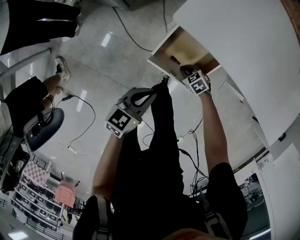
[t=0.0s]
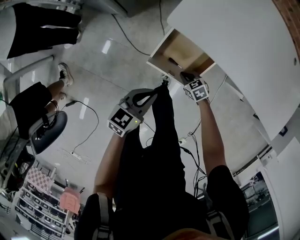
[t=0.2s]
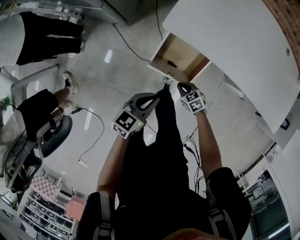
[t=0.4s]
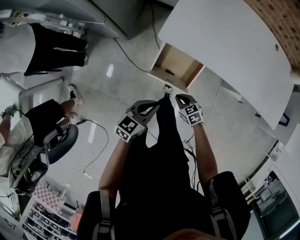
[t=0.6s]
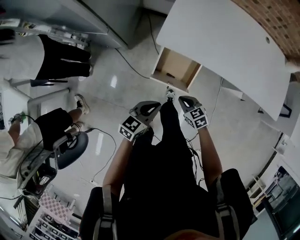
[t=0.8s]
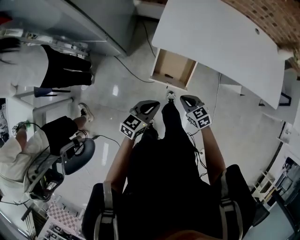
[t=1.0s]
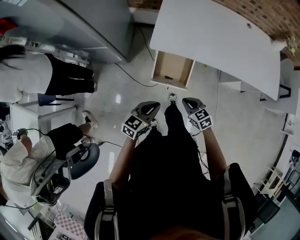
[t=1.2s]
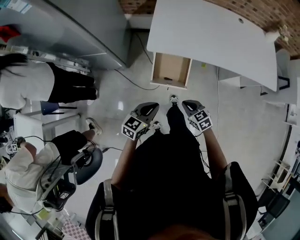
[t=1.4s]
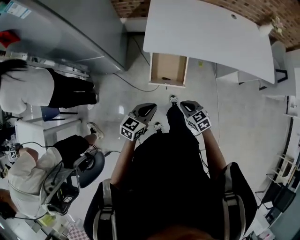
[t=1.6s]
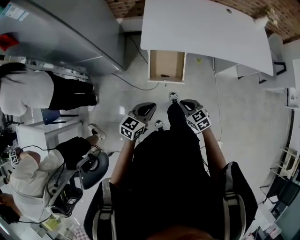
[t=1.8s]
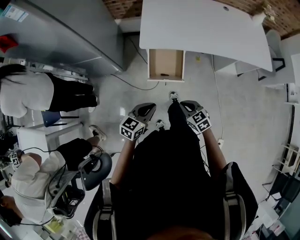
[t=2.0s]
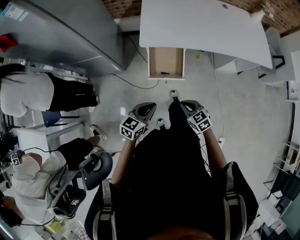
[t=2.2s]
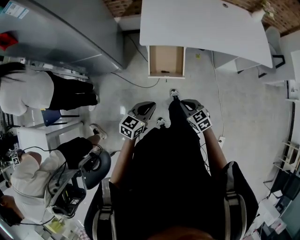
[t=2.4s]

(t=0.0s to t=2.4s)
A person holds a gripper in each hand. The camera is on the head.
t=0.0s - t=1.2s: The right gripper moves upward, roughly 35 cm, and rotates about 40 degrees. The left gripper heads upward, covering approximately 20 cm, and rotates roughly 20 degrees.
t=1.2s - t=2.4s: The two grippers go approximately 10 cm backward.

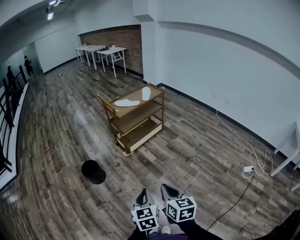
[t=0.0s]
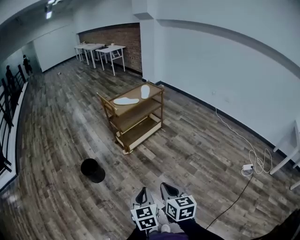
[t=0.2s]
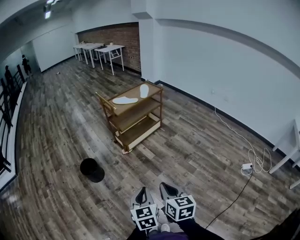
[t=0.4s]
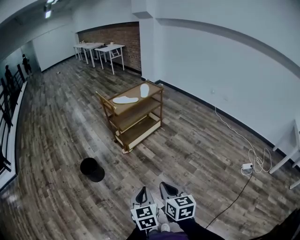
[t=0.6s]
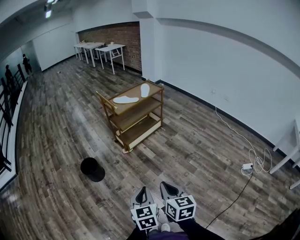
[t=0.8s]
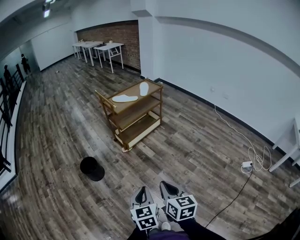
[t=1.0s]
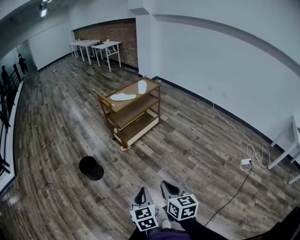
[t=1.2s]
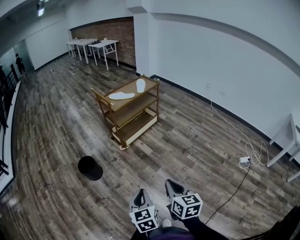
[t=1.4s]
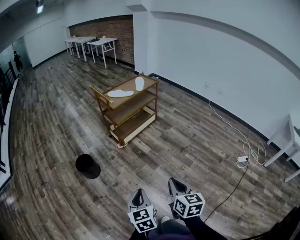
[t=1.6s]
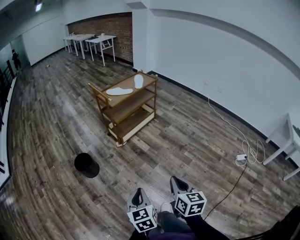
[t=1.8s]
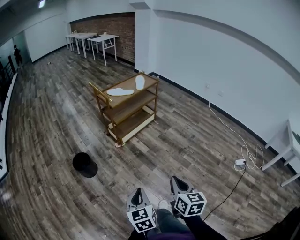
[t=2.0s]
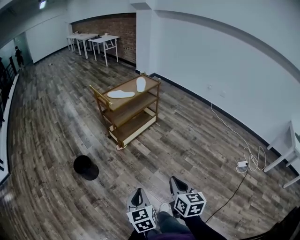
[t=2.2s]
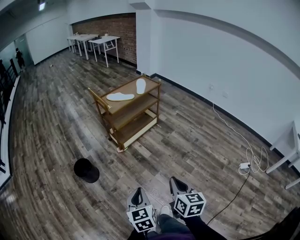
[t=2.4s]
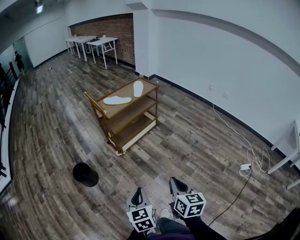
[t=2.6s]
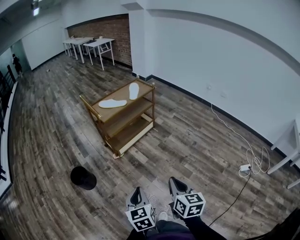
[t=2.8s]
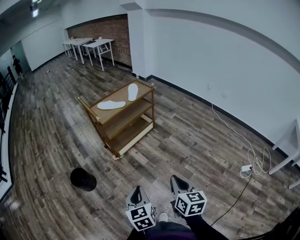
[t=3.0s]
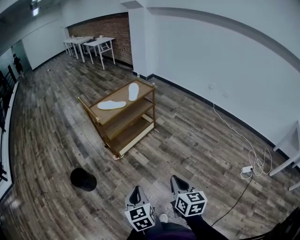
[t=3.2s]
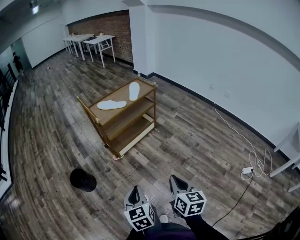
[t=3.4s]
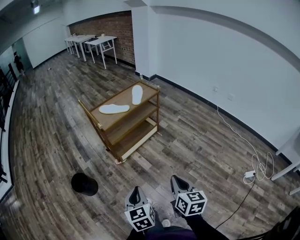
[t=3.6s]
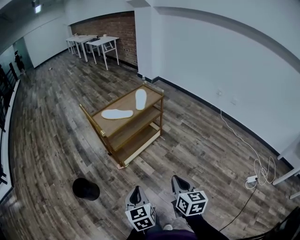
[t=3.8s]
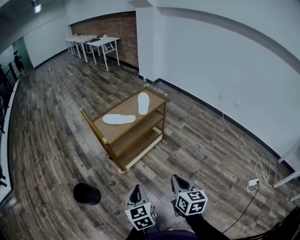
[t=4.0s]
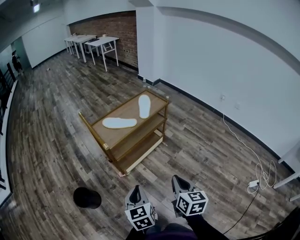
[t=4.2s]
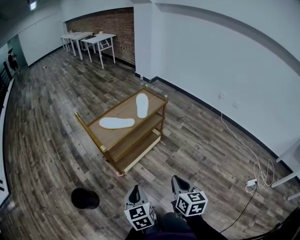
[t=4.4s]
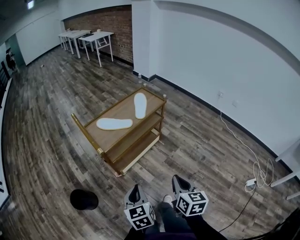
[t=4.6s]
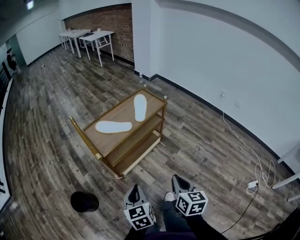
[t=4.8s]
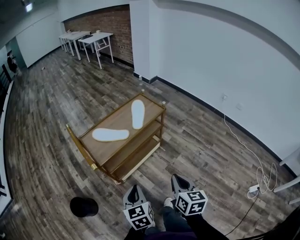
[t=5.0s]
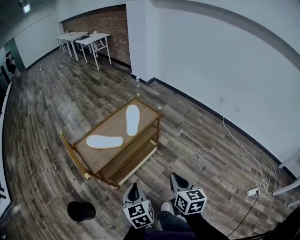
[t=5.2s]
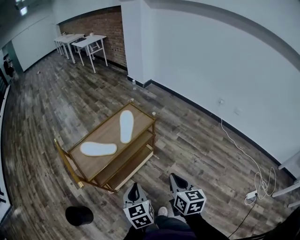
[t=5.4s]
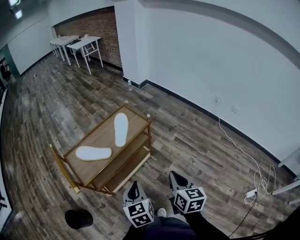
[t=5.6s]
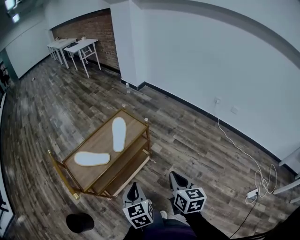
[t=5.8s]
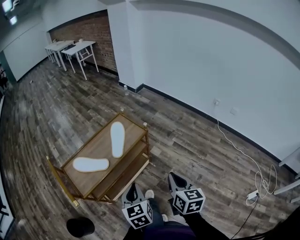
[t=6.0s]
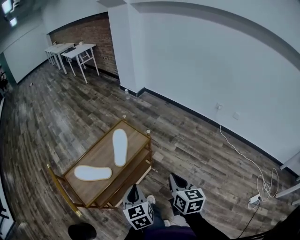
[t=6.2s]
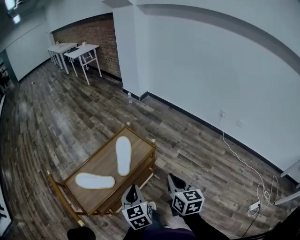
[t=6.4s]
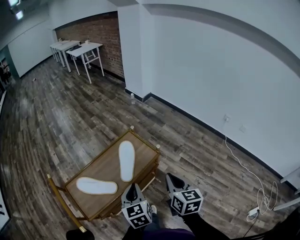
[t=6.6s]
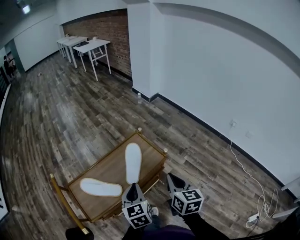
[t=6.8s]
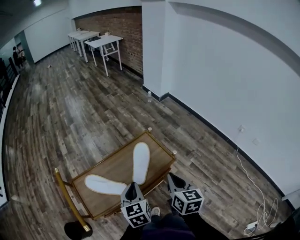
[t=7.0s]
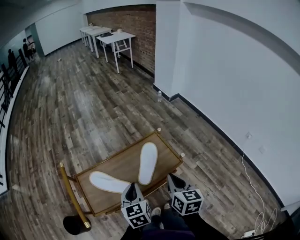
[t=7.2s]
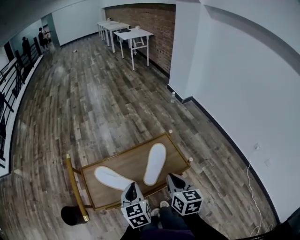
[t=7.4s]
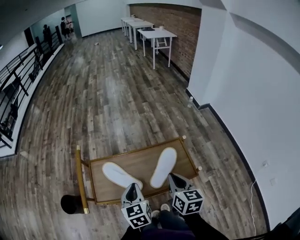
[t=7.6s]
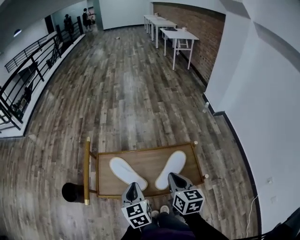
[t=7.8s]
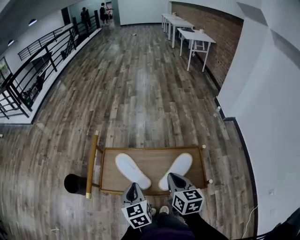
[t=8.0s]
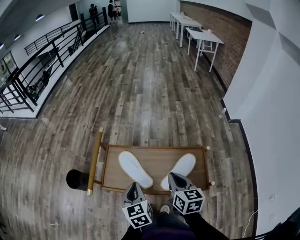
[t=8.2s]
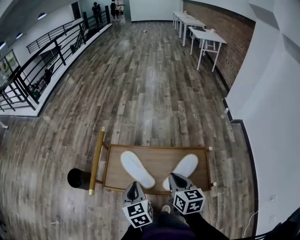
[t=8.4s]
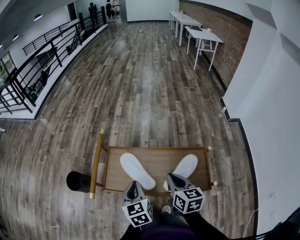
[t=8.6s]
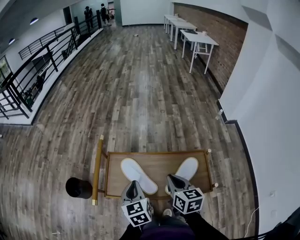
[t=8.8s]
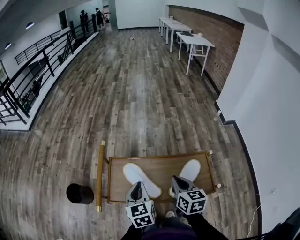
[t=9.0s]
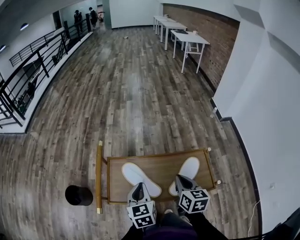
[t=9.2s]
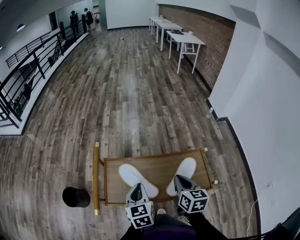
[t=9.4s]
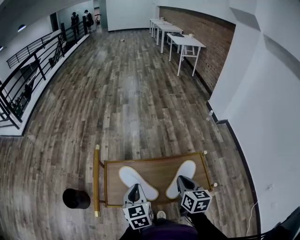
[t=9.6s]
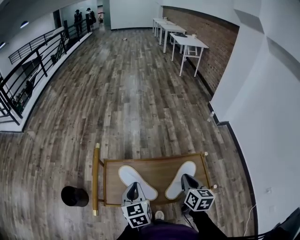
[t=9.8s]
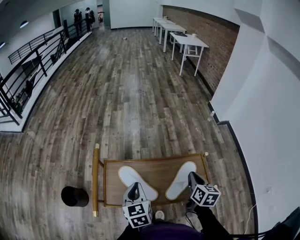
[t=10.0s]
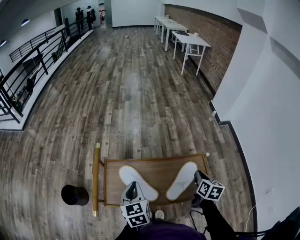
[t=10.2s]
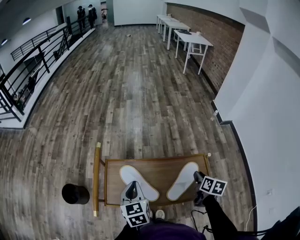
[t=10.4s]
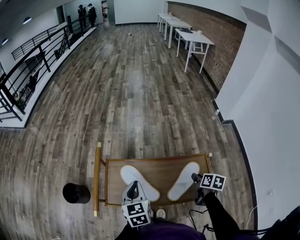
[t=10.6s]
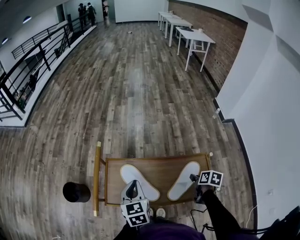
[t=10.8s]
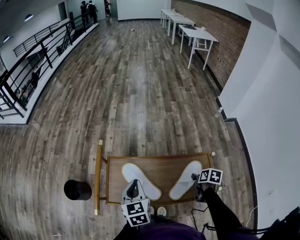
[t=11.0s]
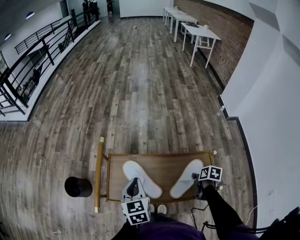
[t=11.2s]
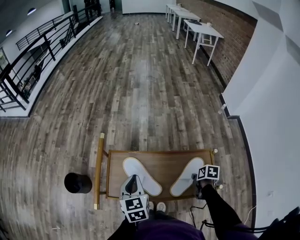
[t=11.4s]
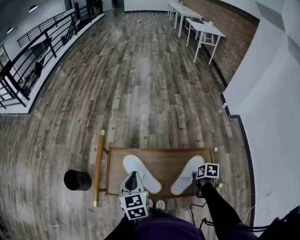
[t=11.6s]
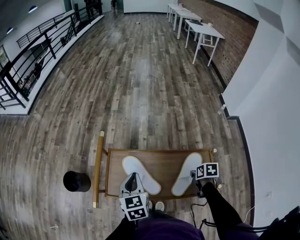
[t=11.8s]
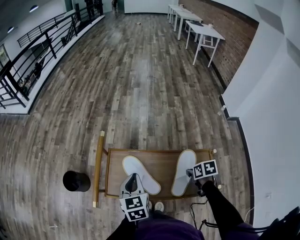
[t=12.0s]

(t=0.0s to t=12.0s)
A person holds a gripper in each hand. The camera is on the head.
t=0.0s - t=1.6s: The grippers make only small movements.
t=1.6s - t=3.0s: The two grippers go some 20 cm forward and to the right.
t=3.0s - t=4.4s: The grippers both shift forward by approximately 30 cm.
t=4.4s - t=6.0s: The grippers both shift forward and to the right by roughly 35 cm.
t=6.0s - t=7.6s: The left gripper changes place by about 25 cm, and changes its angle by approximately 30 degrees. Meanwhile the right gripper changes place by roughly 35 cm, and turns by some 30 degrees.
t=7.6s - t=9.0s: The left gripper travels to the left and forward by some 10 cm. The right gripper heads forward and to the left, covering roughly 10 cm.
t=9.0s - t=10.4s: The right gripper travels to the right and downward by about 20 cm, and swivels approximately 30 degrees.
t=10.4s - t=12.0s: The right gripper is displaced to the left and downward by roughly 10 cm, and rotates roughly 40 degrees.

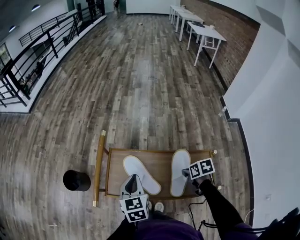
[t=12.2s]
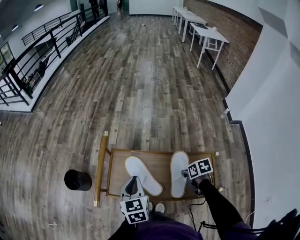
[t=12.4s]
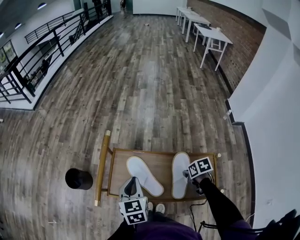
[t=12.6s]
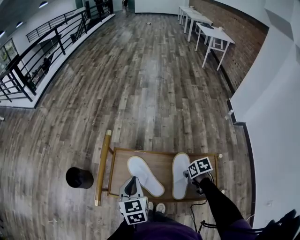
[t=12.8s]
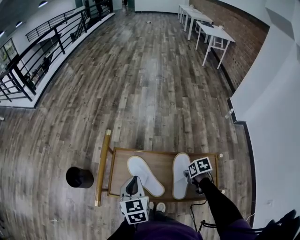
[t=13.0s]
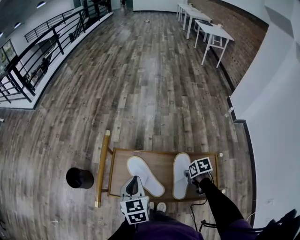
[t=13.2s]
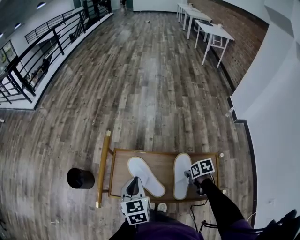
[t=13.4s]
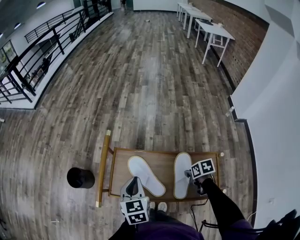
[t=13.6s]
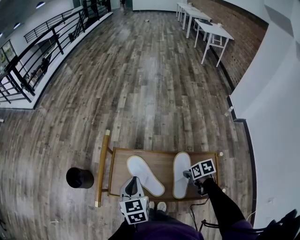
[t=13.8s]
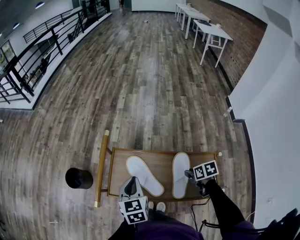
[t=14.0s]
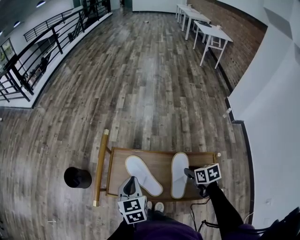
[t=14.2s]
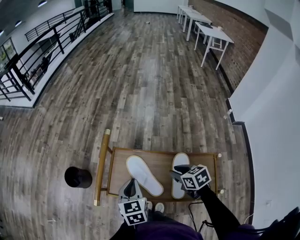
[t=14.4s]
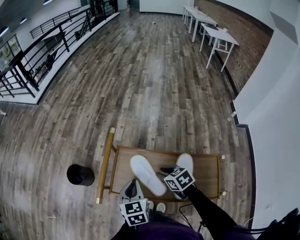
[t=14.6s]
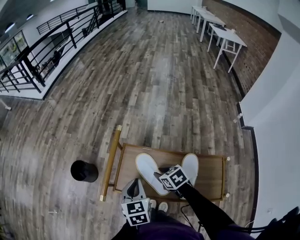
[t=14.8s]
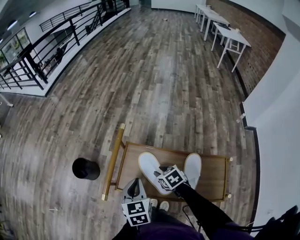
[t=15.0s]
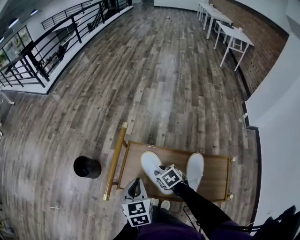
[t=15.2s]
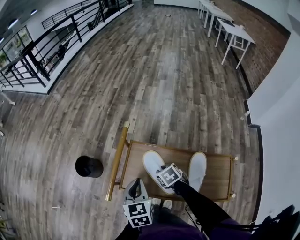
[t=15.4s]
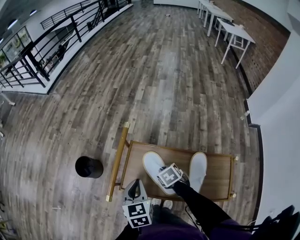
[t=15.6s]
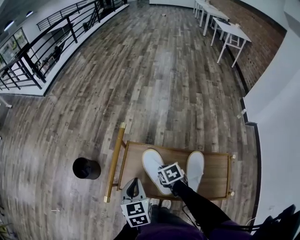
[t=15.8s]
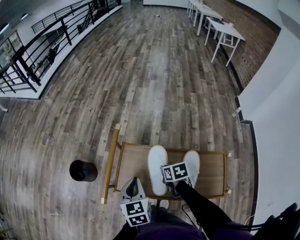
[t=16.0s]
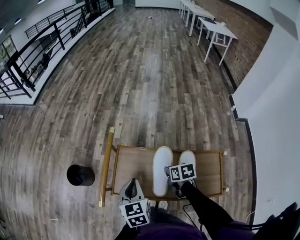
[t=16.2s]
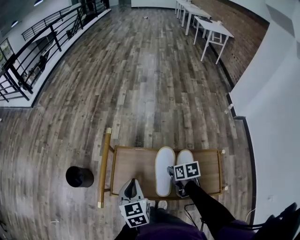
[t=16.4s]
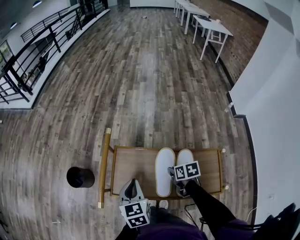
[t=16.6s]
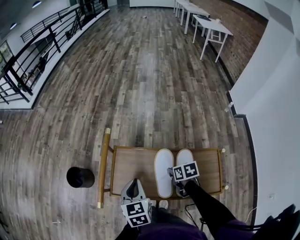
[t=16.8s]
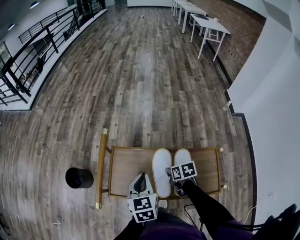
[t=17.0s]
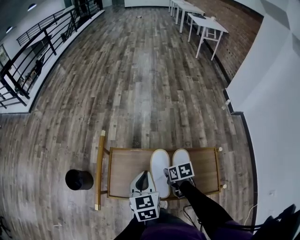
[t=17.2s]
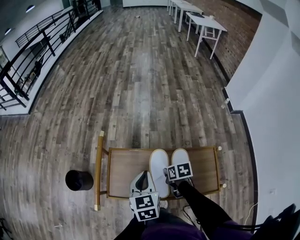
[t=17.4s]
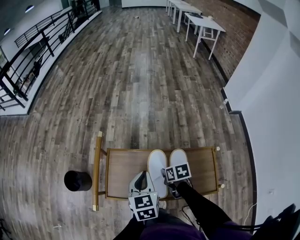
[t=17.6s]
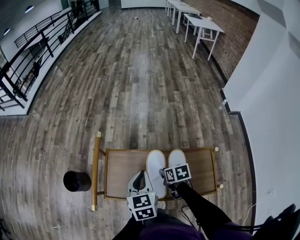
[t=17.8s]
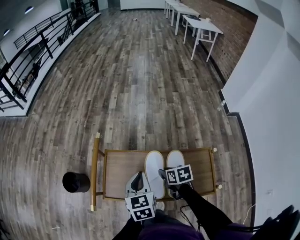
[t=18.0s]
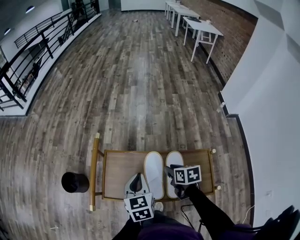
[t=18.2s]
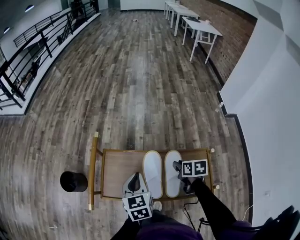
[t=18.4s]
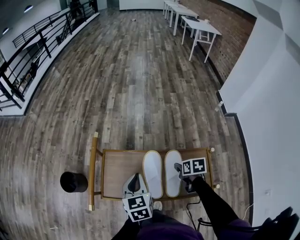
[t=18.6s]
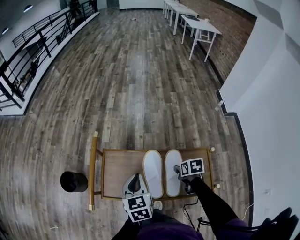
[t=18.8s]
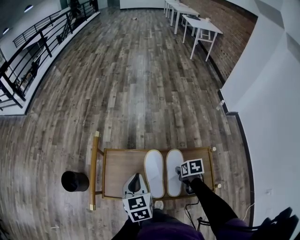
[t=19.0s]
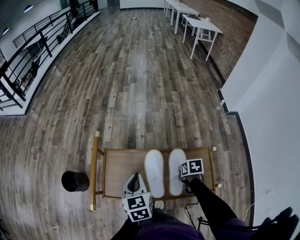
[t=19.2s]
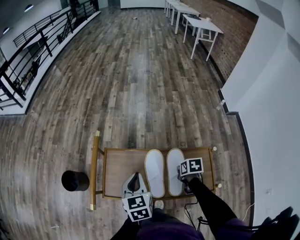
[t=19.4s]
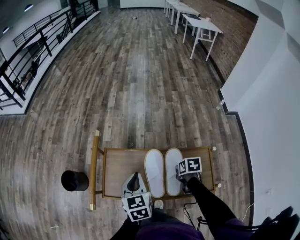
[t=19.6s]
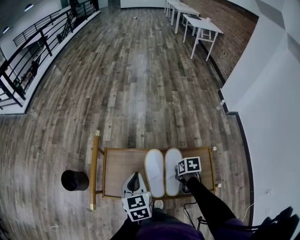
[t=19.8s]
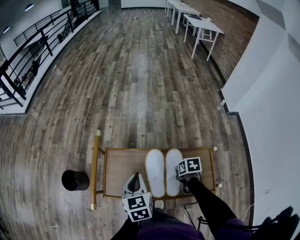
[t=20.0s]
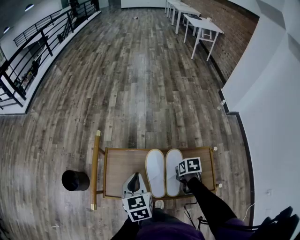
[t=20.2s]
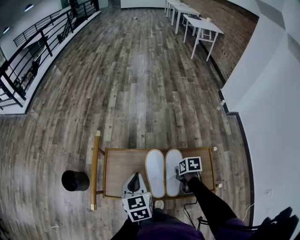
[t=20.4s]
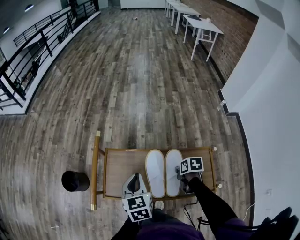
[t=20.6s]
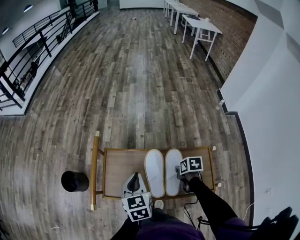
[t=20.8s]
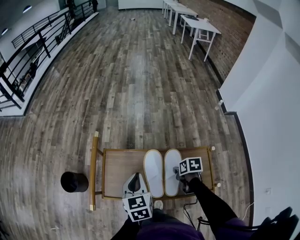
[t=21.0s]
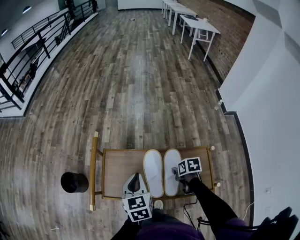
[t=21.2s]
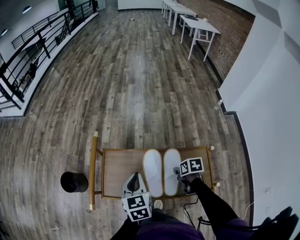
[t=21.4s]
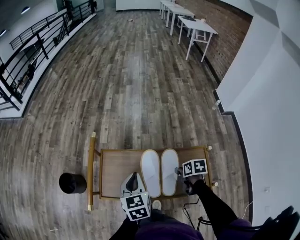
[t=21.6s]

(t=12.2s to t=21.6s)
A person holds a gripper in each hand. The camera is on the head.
t=12.2s - t=13.8s: The grippers make only small movements.
t=13.8s - t=15.4s: The left gripper goes roughly 5 cm to the left, while the right gripper goes some 25 cm to the left and forward, and turns by some 40 degrees.
t=15.4s - t=17.0s: The left gripper heads to the right, covering approximately 10 cm; the right gripper goes about 10 cm to the right and backward, swivels approximately 40 degrees, and closes.
t=17.0s - t=18.4s: The right gripper travels to the right and upward by about 10 cm, and opens up.
t=18.4s - t=20.0s: The right gripper shifts roughly 5 cm downward.
t=20.0s - t=21.6s: The grippers stay close to where they were, moving slightly.
